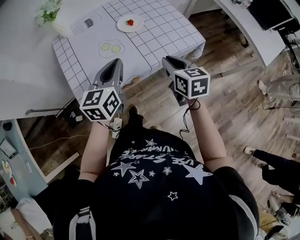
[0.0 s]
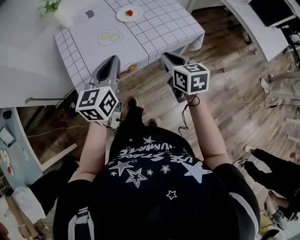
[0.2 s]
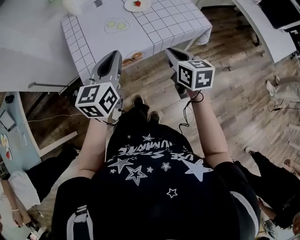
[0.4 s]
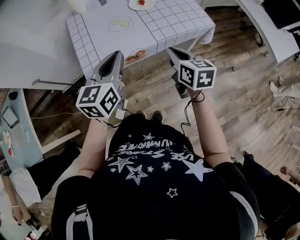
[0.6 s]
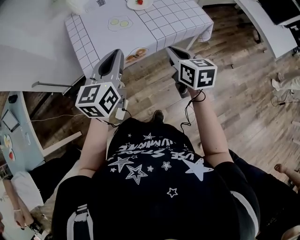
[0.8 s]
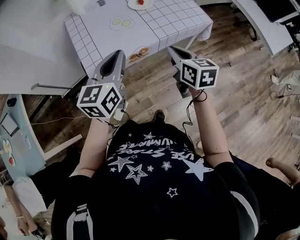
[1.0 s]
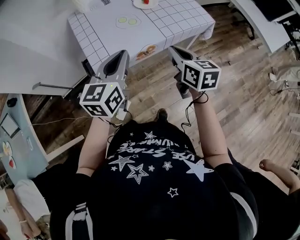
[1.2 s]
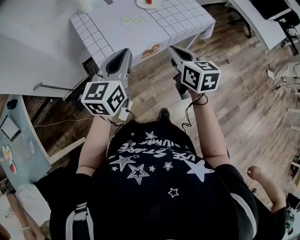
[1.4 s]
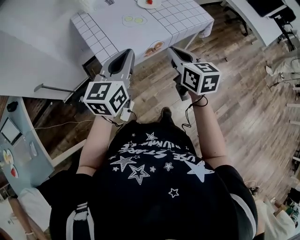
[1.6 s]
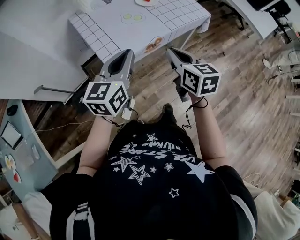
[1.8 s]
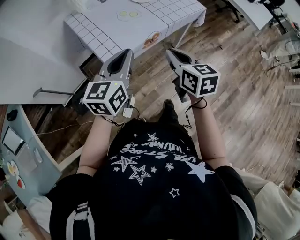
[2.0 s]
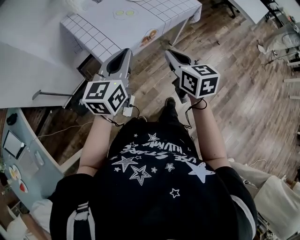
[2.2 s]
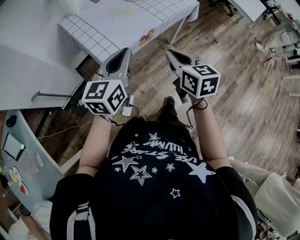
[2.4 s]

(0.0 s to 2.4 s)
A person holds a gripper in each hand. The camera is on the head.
0.0 s - 1.2 s: The grippers both shift backward and to the left by approximately 15 cm.
1.2 s - 2.4 s: The right gripper is displaced backward and to the left by roughly 15 cm. Meanwhile the left gripper travels backward and to the left by roughly 10 cm.

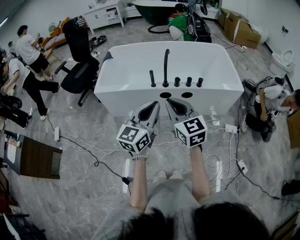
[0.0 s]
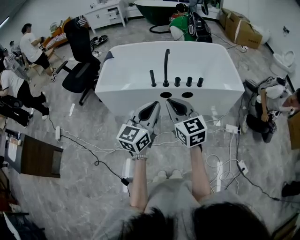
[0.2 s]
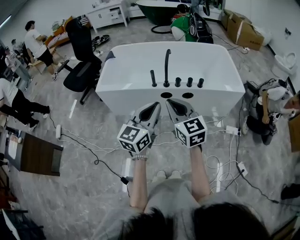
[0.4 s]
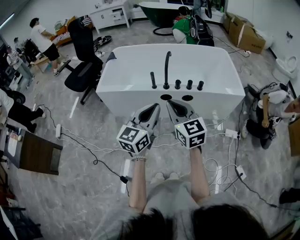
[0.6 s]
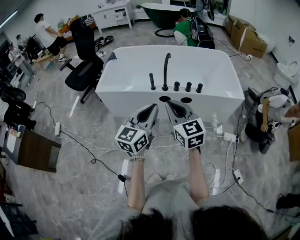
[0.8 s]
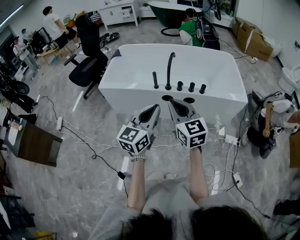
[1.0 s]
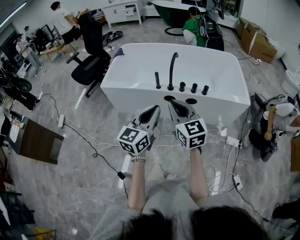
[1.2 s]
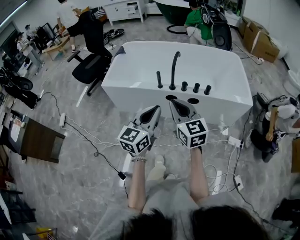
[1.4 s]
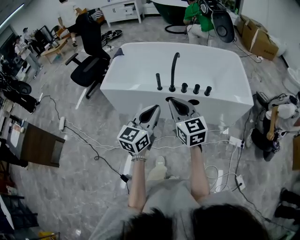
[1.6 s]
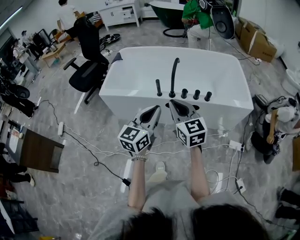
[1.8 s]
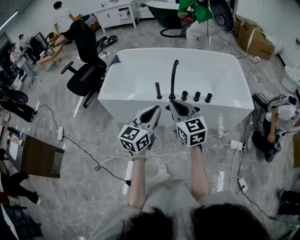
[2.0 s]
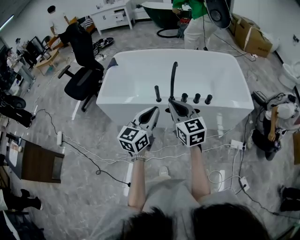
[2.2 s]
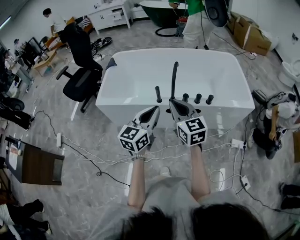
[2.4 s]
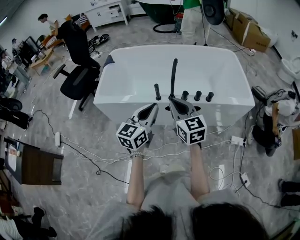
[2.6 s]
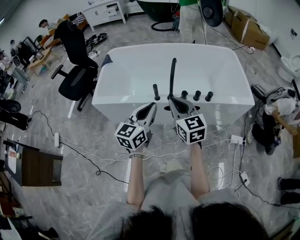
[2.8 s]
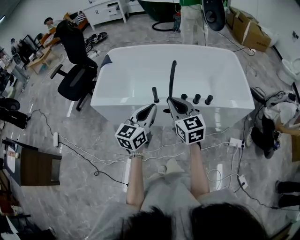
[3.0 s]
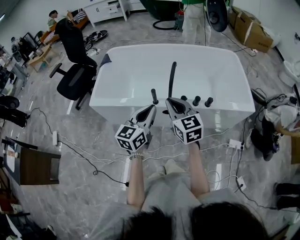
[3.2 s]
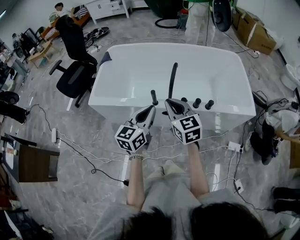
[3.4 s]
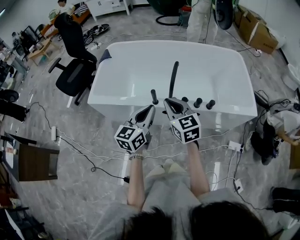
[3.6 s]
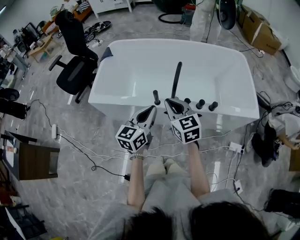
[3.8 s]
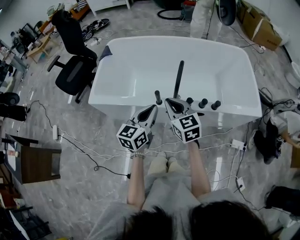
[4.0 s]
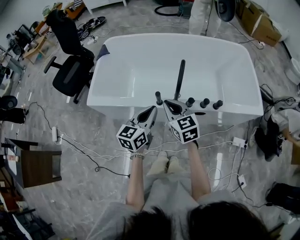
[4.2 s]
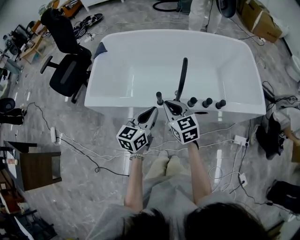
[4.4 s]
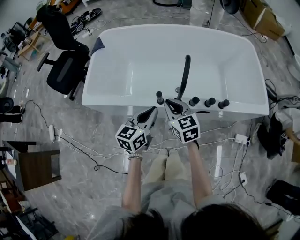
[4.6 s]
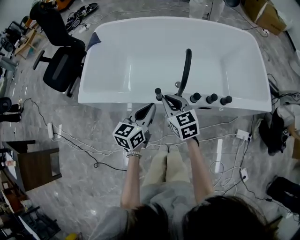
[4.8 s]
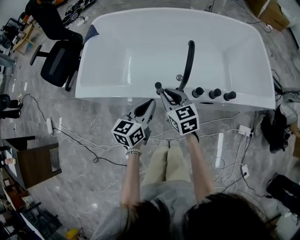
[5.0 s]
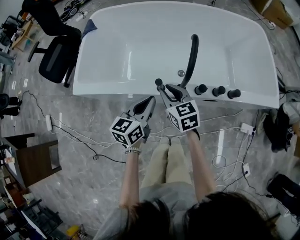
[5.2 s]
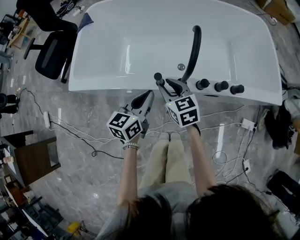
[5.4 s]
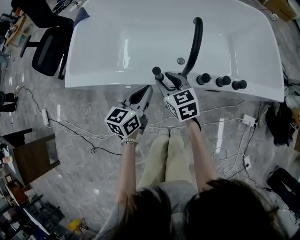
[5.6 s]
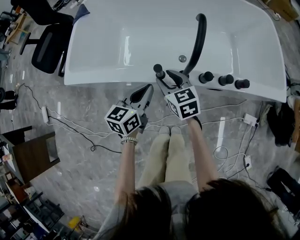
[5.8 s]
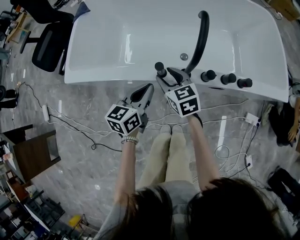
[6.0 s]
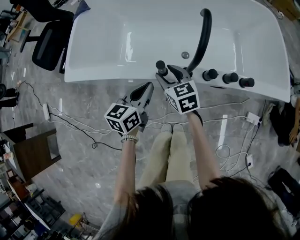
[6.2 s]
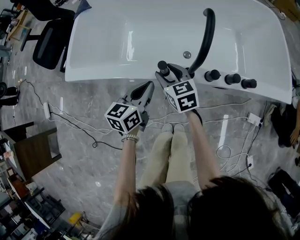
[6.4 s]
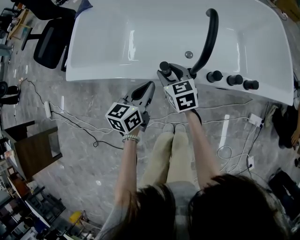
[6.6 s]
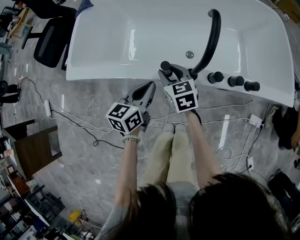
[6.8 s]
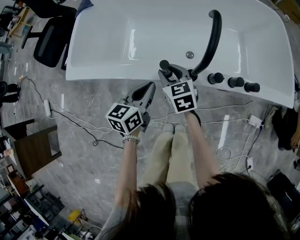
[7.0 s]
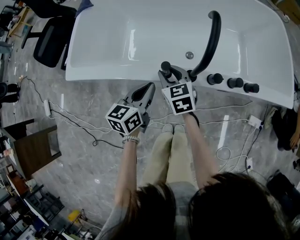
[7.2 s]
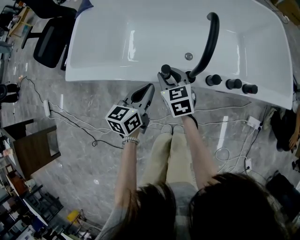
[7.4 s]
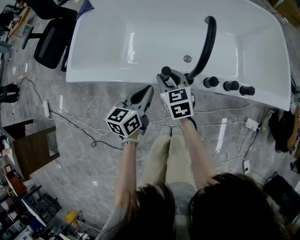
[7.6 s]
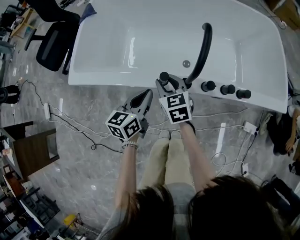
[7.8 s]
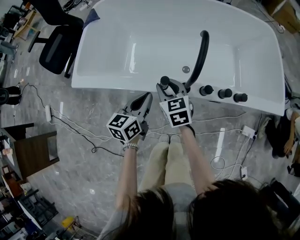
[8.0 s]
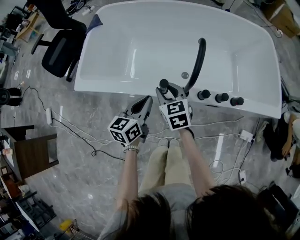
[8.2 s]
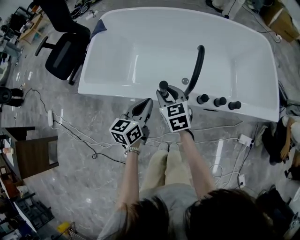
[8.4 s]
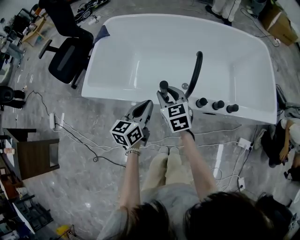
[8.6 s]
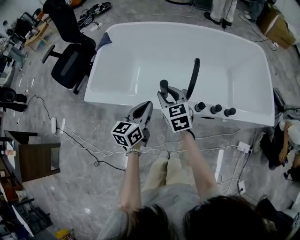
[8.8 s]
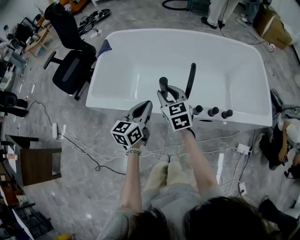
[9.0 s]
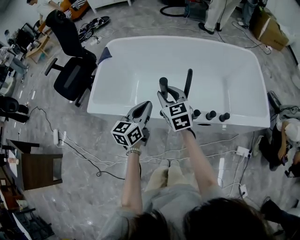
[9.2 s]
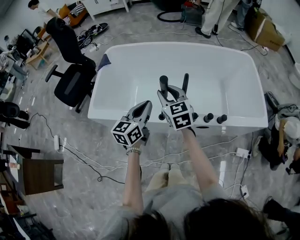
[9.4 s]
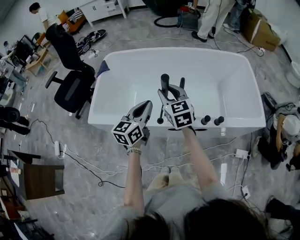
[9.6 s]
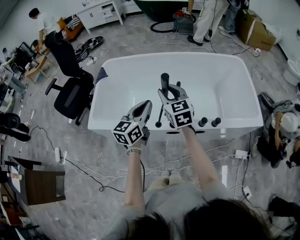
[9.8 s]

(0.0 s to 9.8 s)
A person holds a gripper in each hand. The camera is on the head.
0.0 s - 1.4 s: The right gripper ends up about 5 cm from where it was.
1.4 s - 2.8 s: Both grippers travel together forward, approximately 15 cm.
2.8 s - 4.2 s: The two grippers go about 15 cm forward and downward.
4.2 s - 5.6 s: The right gripper goes roughly 25 cm downward and forward, and opens its fingers, while the left gripper is displaced downward by about 20 cm.
5.6 s - 7.0 s: The right gripper goes approximately 5 cm downward.
7.0 s - 8.4 s: The two grippers go roughly 10 cm upward.
8.4 s - 9.8 s: Both grippers travel together upward, about 20 cm.

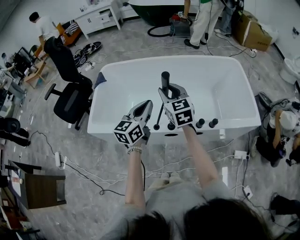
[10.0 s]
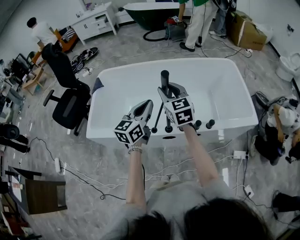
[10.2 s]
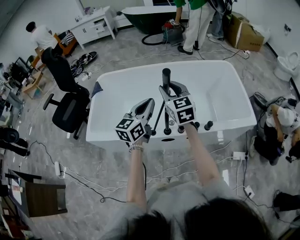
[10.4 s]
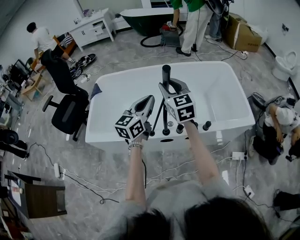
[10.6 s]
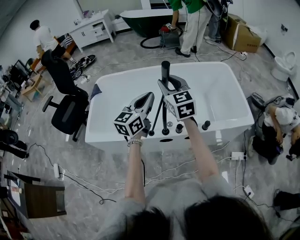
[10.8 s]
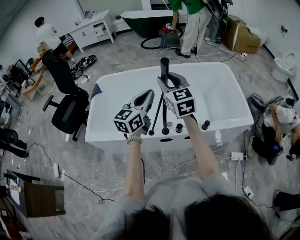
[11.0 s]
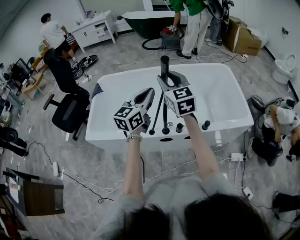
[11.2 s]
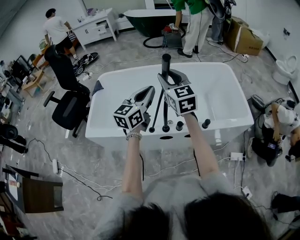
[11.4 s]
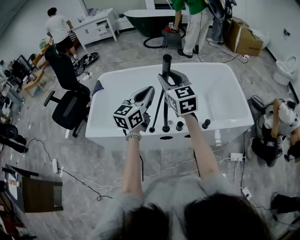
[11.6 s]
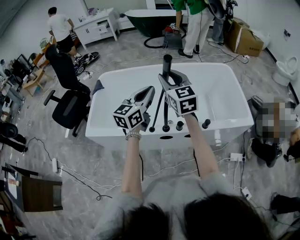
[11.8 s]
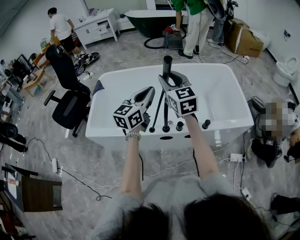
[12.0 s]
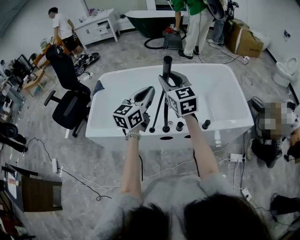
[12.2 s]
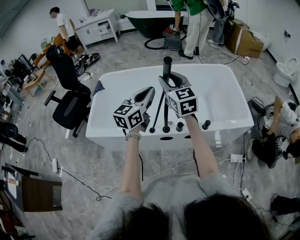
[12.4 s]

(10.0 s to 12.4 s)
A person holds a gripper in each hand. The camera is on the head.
10.0 s - 11.2 s: The left gripper travels upward and to the right by approximately 10 cm. The right gripper travels upward by some 10 cm.
11.2 s - 12.4 s: Both grippers stay about where they are.

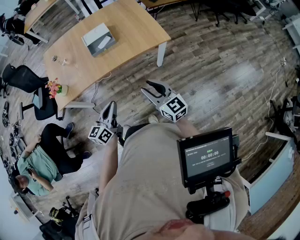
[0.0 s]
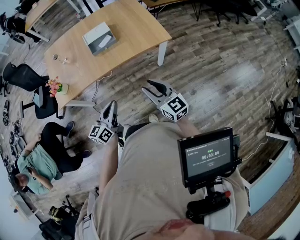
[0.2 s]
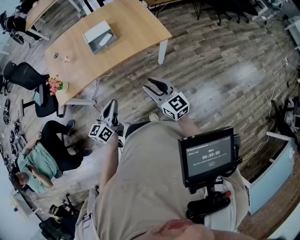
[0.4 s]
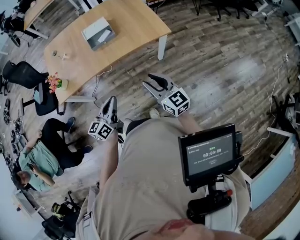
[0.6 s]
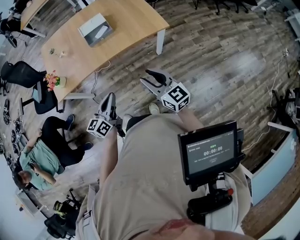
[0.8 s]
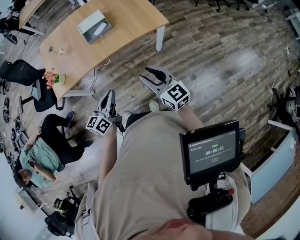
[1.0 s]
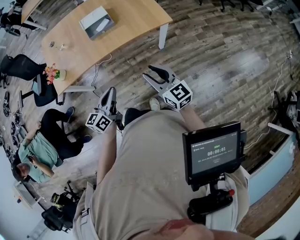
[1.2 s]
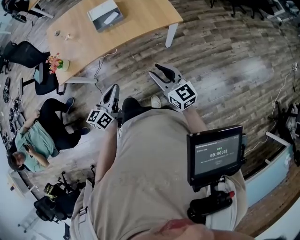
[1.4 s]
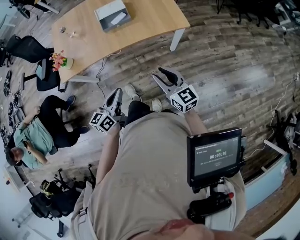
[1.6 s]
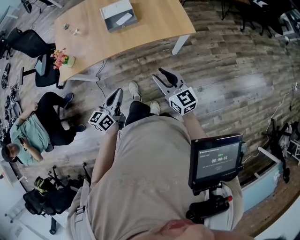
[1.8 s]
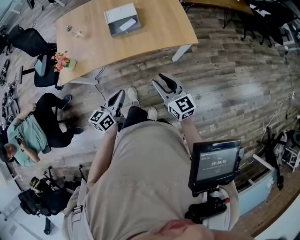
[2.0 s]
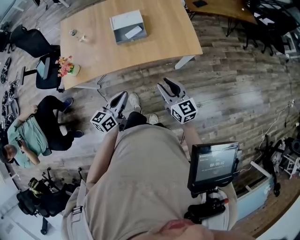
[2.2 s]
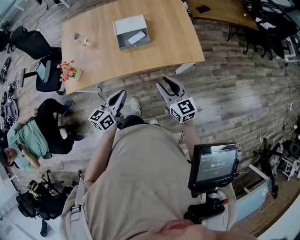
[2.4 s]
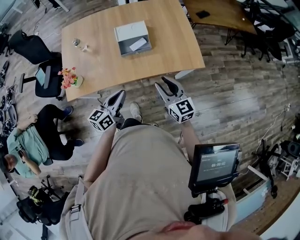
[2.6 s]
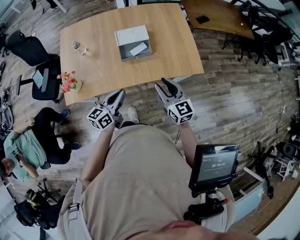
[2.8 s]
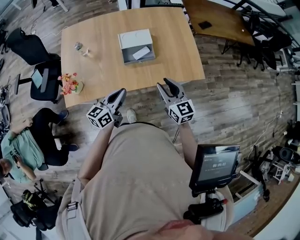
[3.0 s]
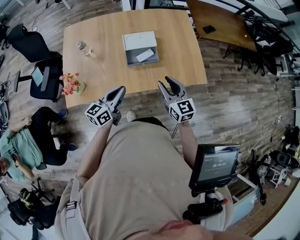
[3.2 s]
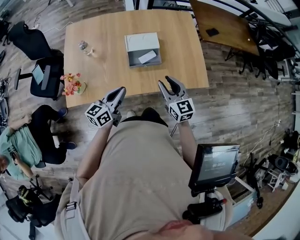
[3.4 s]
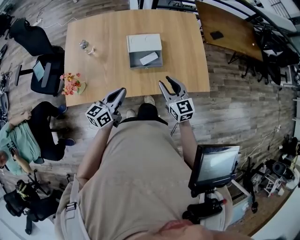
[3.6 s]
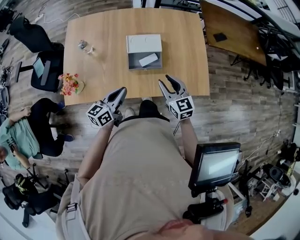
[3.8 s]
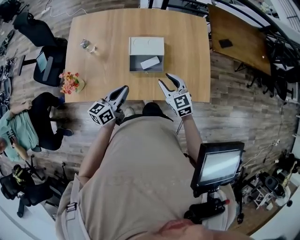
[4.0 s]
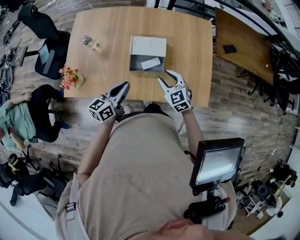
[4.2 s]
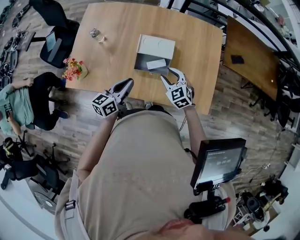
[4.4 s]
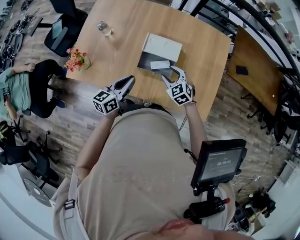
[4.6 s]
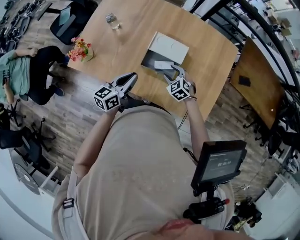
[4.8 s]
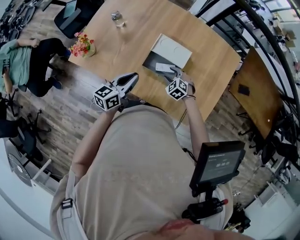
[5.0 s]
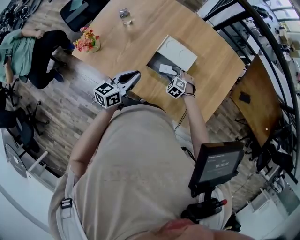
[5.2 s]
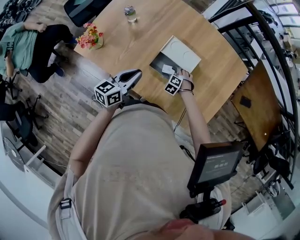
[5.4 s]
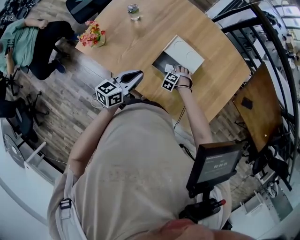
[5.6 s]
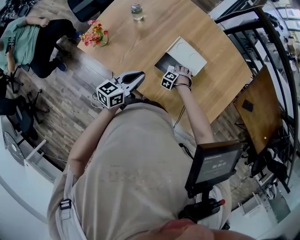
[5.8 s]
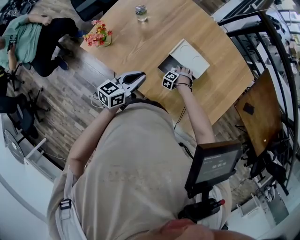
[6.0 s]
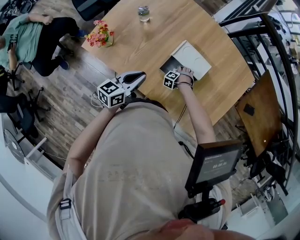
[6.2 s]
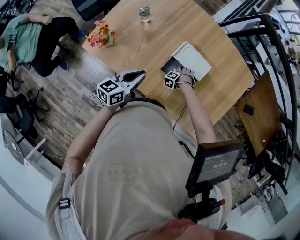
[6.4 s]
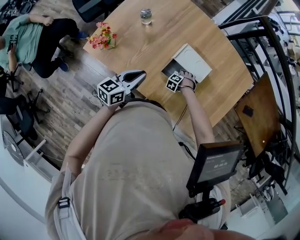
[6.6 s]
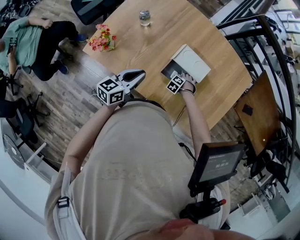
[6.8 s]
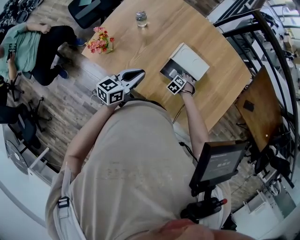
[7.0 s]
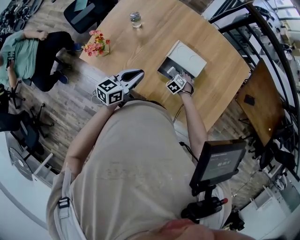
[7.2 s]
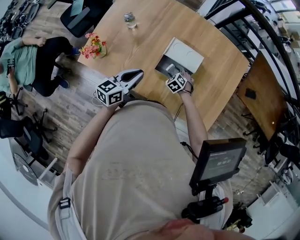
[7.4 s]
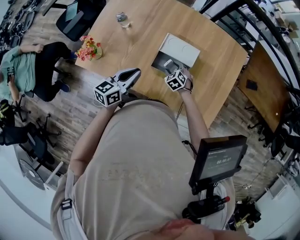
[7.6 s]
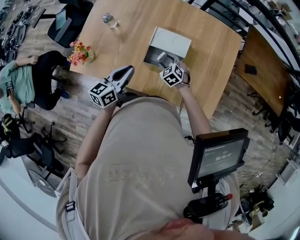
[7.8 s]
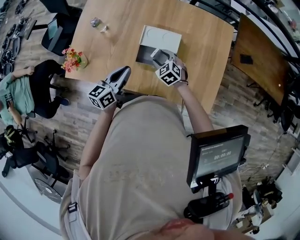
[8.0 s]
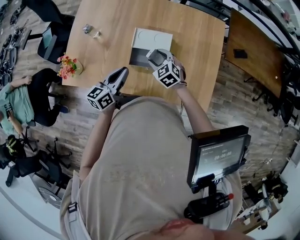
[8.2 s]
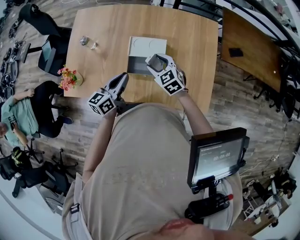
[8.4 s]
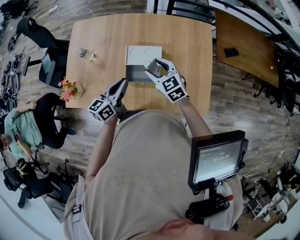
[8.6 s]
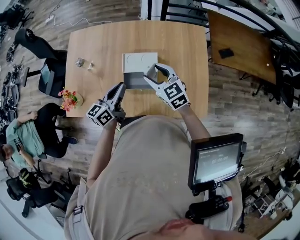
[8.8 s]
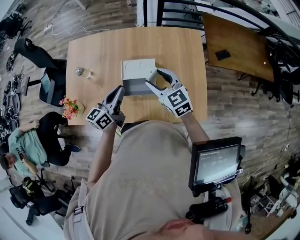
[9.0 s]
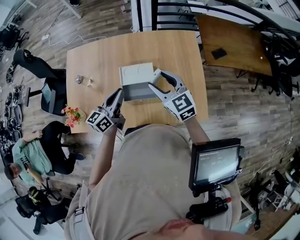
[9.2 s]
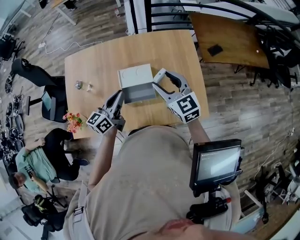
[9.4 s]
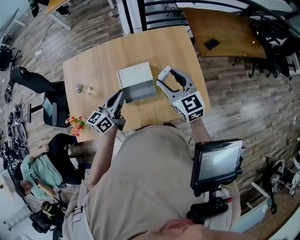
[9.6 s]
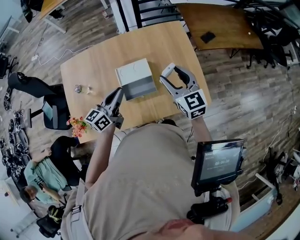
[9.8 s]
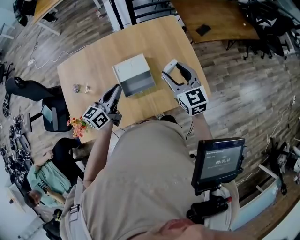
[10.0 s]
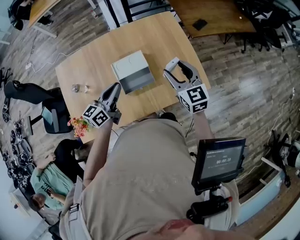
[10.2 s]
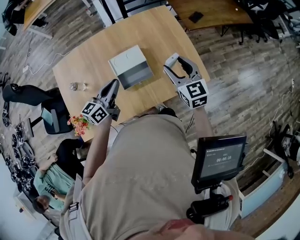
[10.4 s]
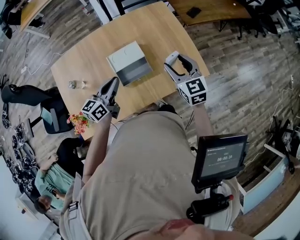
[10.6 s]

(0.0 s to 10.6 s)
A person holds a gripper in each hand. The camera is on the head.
0.0 s - 1.6 s: The grippers make only small movements.
1.6 s - 3.0 s: The two grippers go approximately 30 cm forward and to the left.
3.0 s - 4.6 s: The left gripper shifts by approximately 20 cm, and swivels some 20 degrees; the right gripper shifts by about 30 cm, and angles its fingers downward, by some 30 degrees.
4.6 s - 6.0 s: The right gripper travels downward by approximately 30 cm, and angles its fingers downward, by approximately 30 degrees, while the left gripper moves roughly 5 cm.
6.0 s - 7.6 s: The right gripper moves upward, approximately 15 cm, and rotates around the line of its fingers by roughly 50 degrees, clockwise from behind.
7.6 s - 9.0 s: The right gripper is displaced upward by approximately 30 cm, and tips its fingers upward by some 40 degrees; the left gripper shifts some 15 cm to the right, upward and forward.
9.0 s - 10.6 s: The right gripper moves about 15 cm, and rotates about 40 degrees, while the left gripper swivels approximately 20 degrees.
